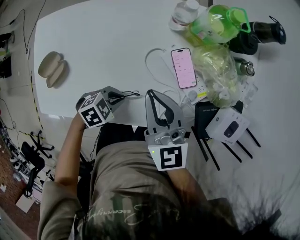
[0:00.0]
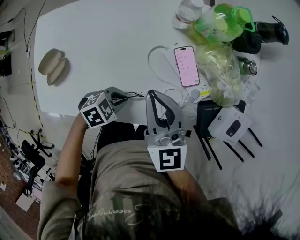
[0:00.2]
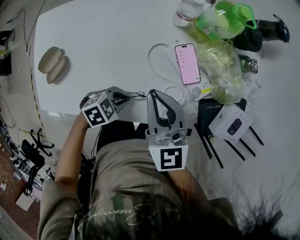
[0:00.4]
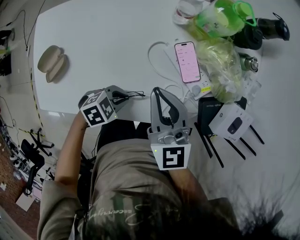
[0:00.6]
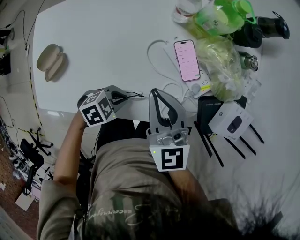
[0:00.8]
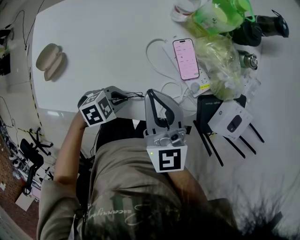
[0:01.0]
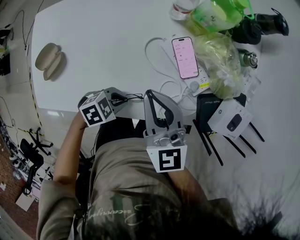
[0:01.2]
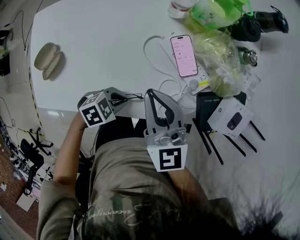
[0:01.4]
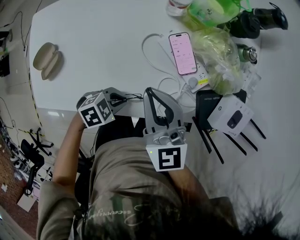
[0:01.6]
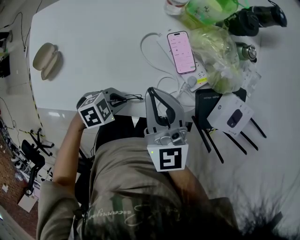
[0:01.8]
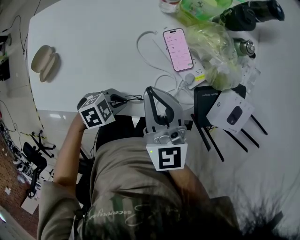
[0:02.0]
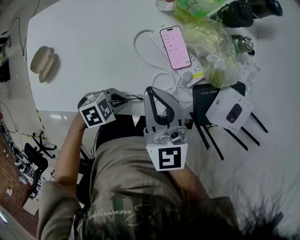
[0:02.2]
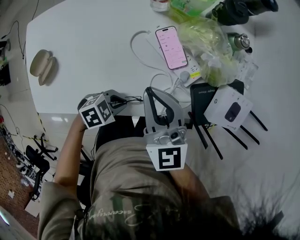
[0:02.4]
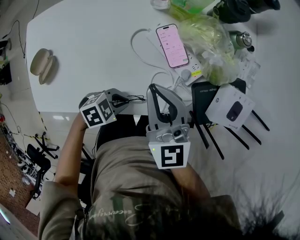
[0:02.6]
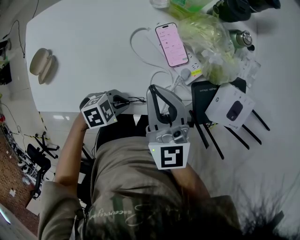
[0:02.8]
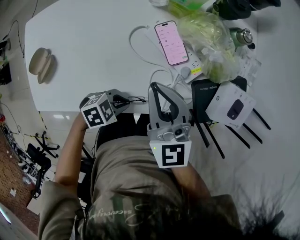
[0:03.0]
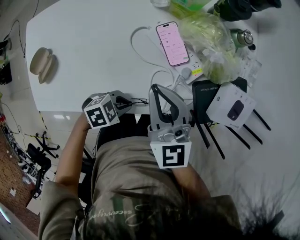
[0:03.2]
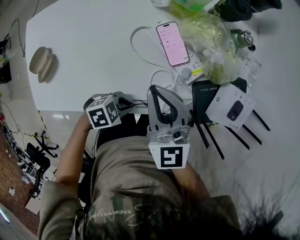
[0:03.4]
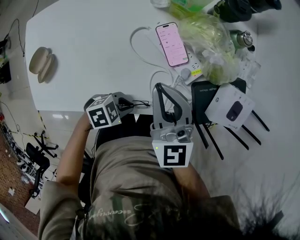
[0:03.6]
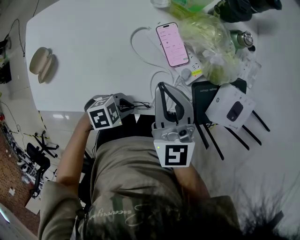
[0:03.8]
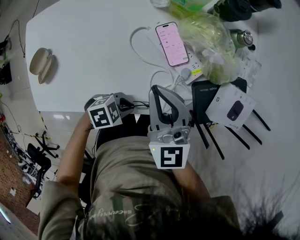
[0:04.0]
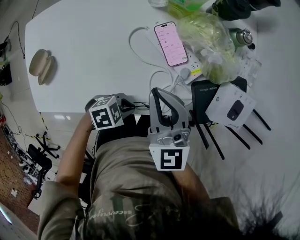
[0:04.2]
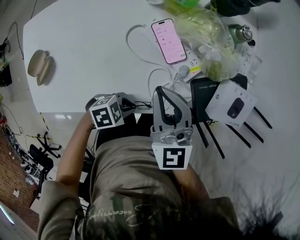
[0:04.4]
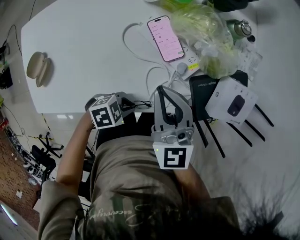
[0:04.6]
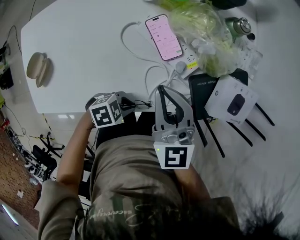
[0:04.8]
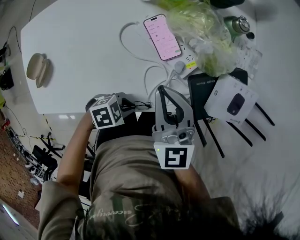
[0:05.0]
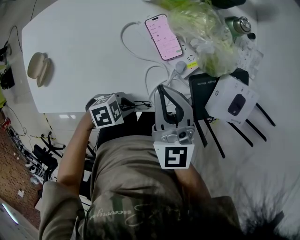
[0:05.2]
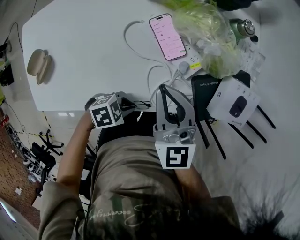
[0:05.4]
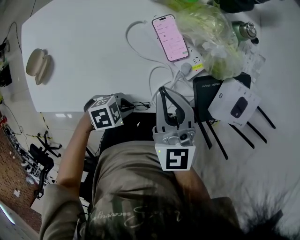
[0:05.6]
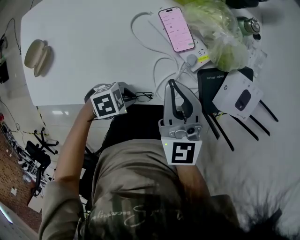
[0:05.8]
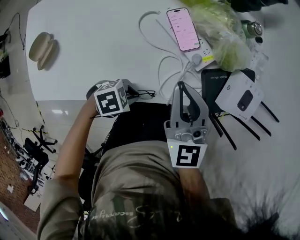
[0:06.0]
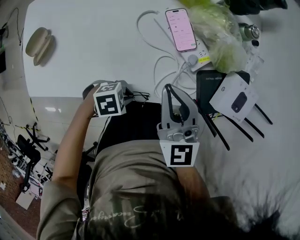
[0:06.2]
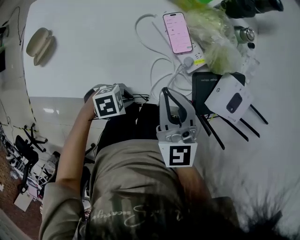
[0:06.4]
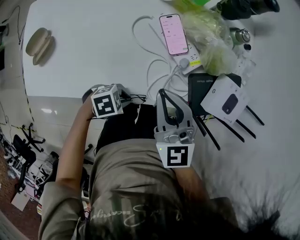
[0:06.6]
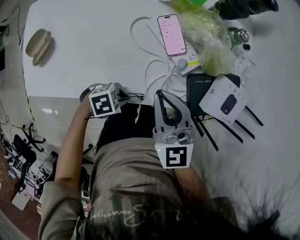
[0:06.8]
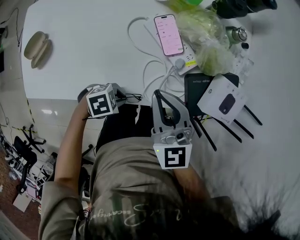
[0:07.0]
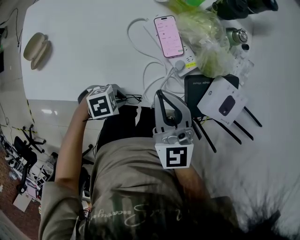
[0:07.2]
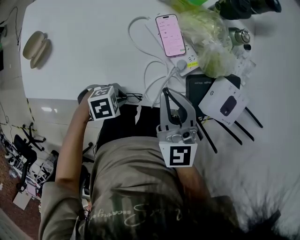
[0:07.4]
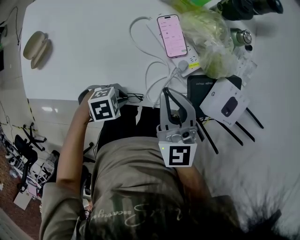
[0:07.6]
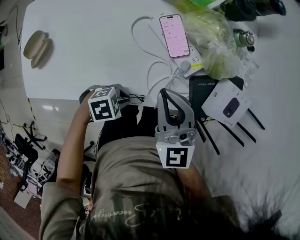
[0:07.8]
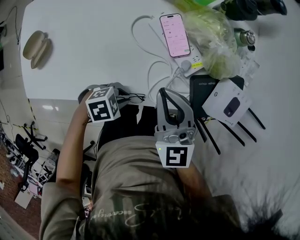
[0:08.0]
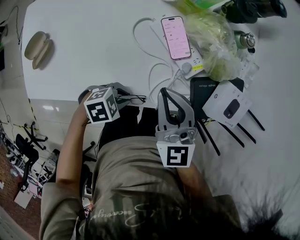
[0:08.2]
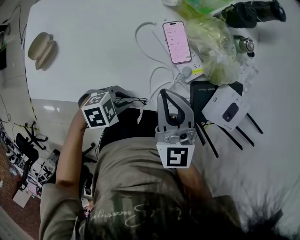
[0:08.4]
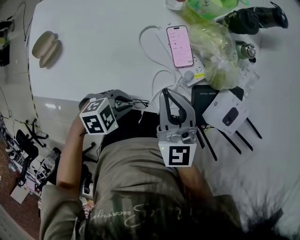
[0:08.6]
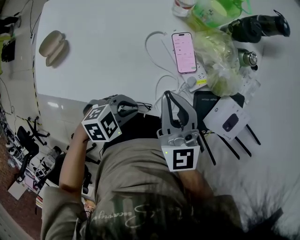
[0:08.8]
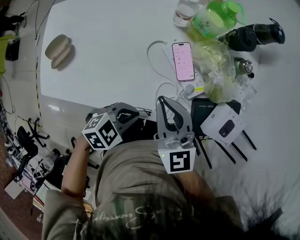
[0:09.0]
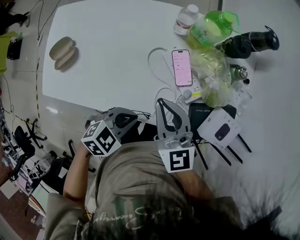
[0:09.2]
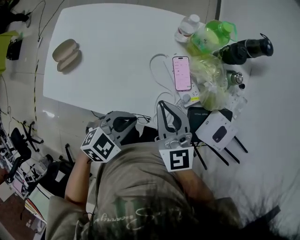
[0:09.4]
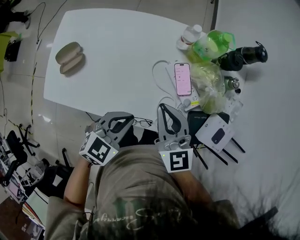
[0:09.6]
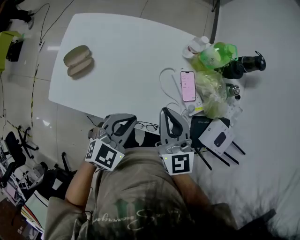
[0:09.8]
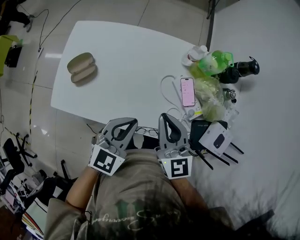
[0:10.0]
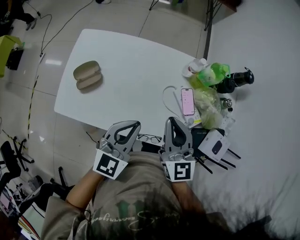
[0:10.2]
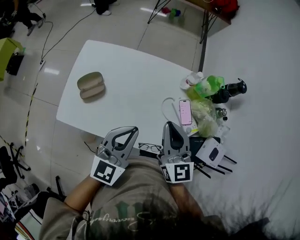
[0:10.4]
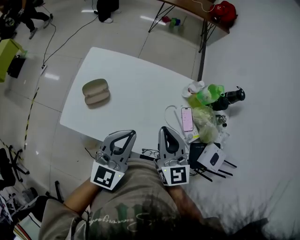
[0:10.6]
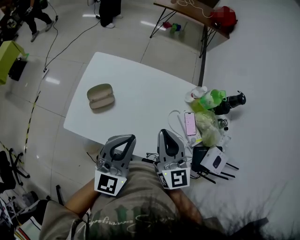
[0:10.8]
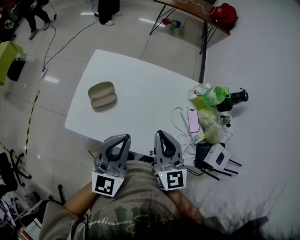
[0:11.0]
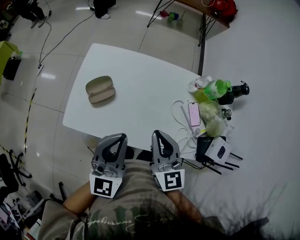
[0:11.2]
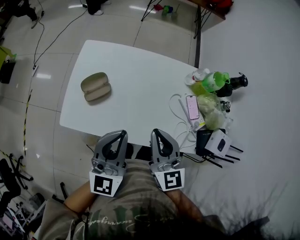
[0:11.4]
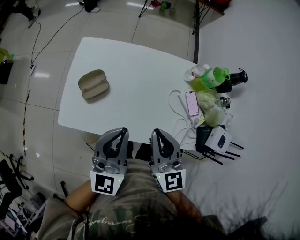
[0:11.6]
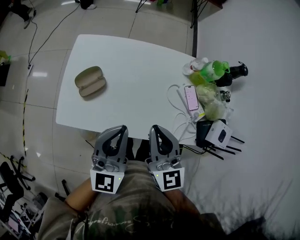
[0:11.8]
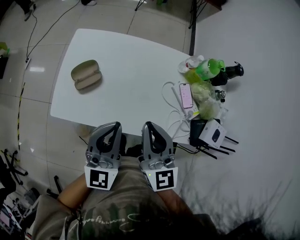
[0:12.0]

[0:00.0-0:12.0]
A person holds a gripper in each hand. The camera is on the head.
0:00.0 to 0:01.6: The left gripper shifts by roughly 5 cm.
0:01.6 to 0:03.0: The right gripper moves about 5 cm; the left gripper shifts by some 5 cm.
0:03.0 to 0:06.0: There are only small adjustments of the grippers.
0:06.0 to 0:07.6: The grippers make only small movements.
0:07.6 to 0:09.0: The left gripper moves upward, about 10 cm, and turns by approximately 30 degrees. The right gripper moves about 5 cm.
0:09.0 to 0:10.4: The right gripper goes roughly 10 cm upward, while the left gripper shifts about 25 cm upward, and tips its fingers upward by some 40 degrees.
0:10.4 to 0:12.0: The left gripper heads to the left, covering some 10 cm, while the right gripper moves to the left and backward, some 10 cm.

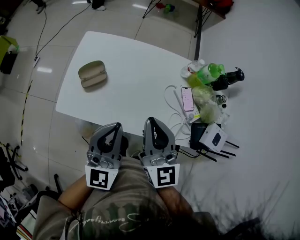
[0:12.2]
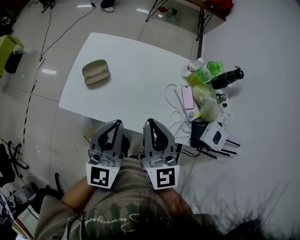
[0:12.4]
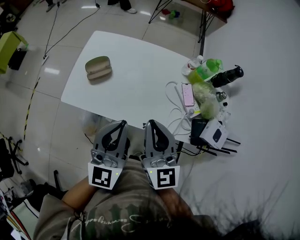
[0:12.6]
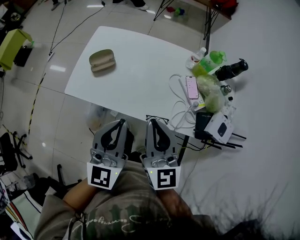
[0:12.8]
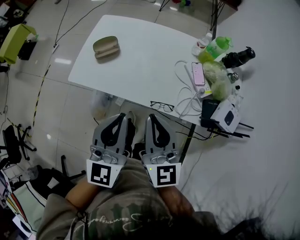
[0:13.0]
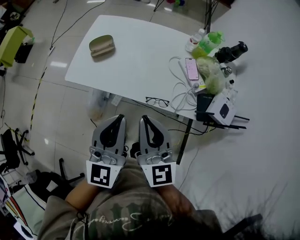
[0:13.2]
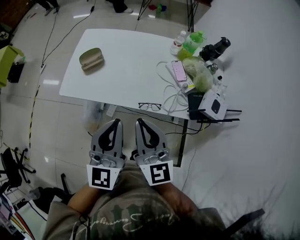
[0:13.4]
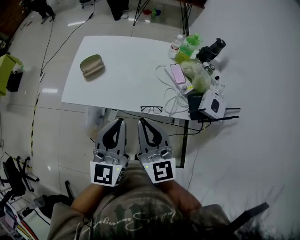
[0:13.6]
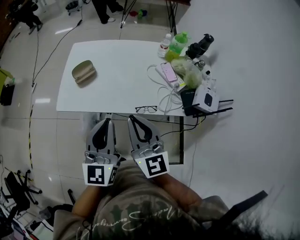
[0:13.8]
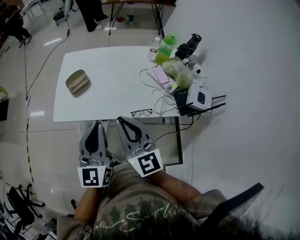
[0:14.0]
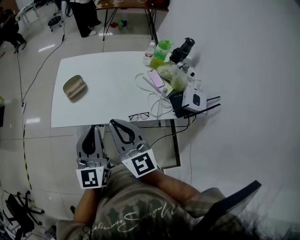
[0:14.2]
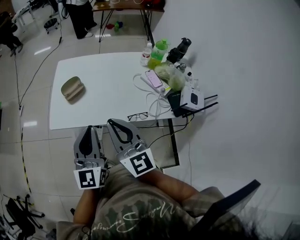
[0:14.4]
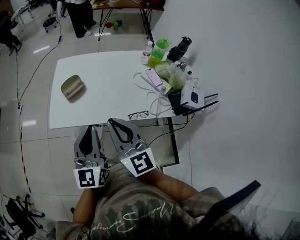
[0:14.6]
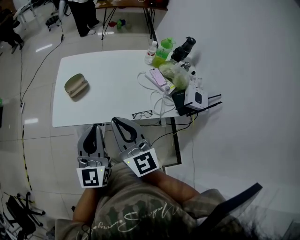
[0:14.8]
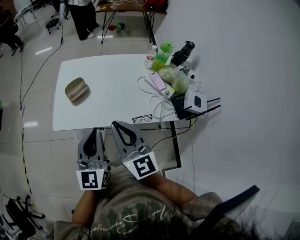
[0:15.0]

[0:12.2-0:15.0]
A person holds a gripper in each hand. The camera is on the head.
0:12.2 to 0:13.6: The grippers both shift backward by roughly 20 cm.
0:13.6 to 0:15.0: Both grippers move to the left, roughly 10 cm.

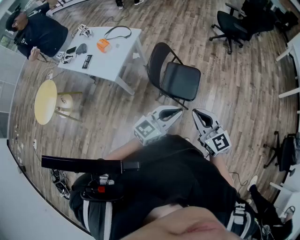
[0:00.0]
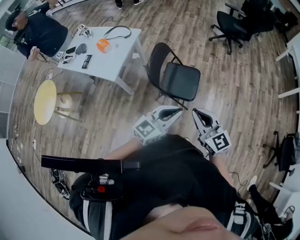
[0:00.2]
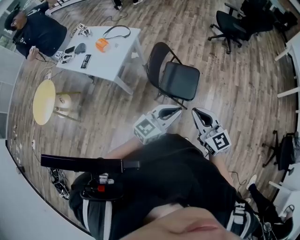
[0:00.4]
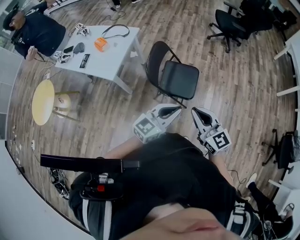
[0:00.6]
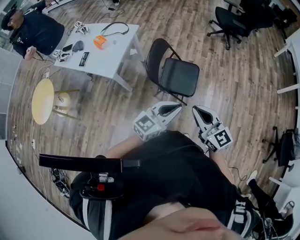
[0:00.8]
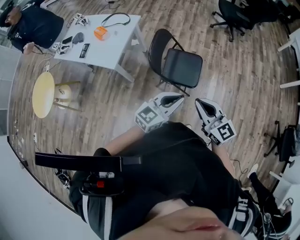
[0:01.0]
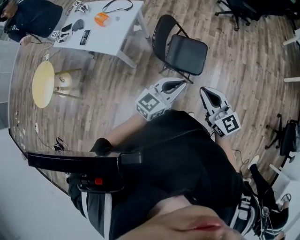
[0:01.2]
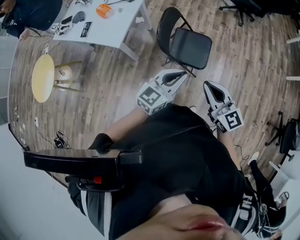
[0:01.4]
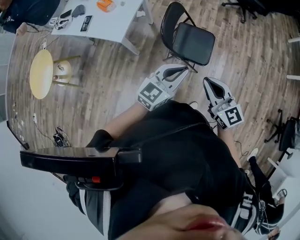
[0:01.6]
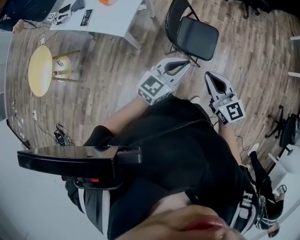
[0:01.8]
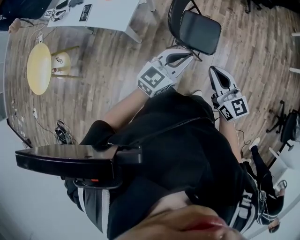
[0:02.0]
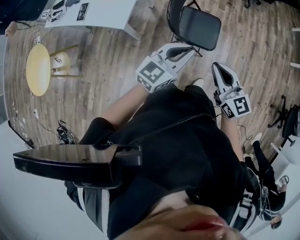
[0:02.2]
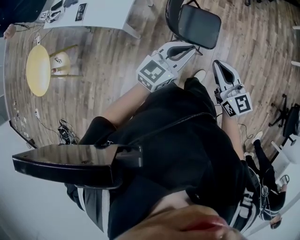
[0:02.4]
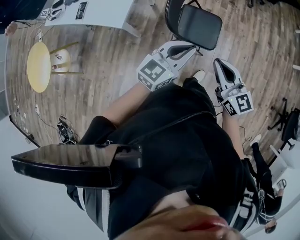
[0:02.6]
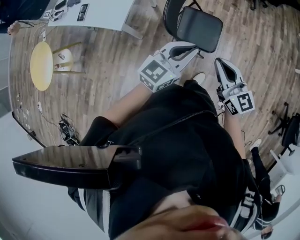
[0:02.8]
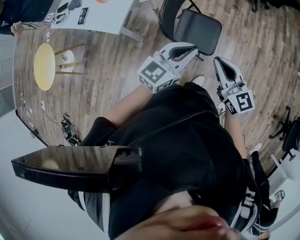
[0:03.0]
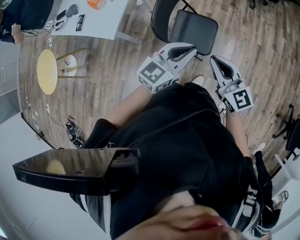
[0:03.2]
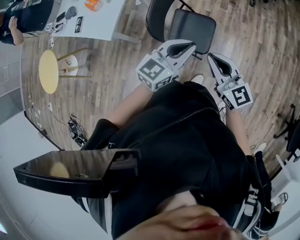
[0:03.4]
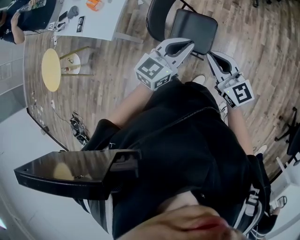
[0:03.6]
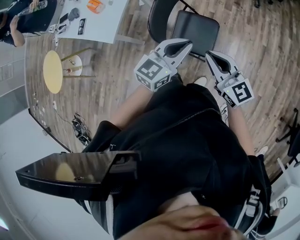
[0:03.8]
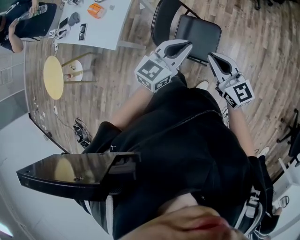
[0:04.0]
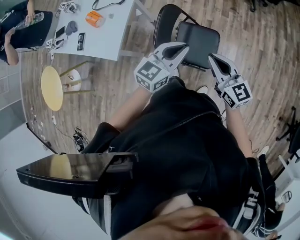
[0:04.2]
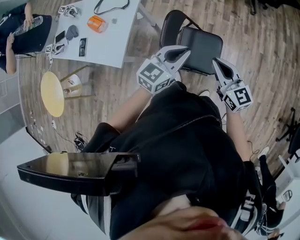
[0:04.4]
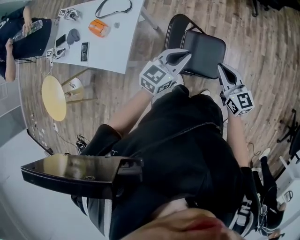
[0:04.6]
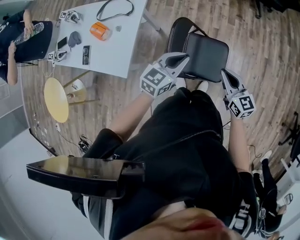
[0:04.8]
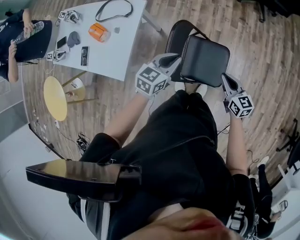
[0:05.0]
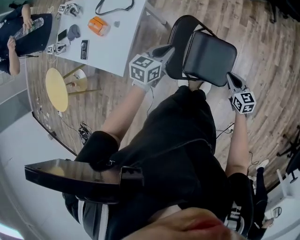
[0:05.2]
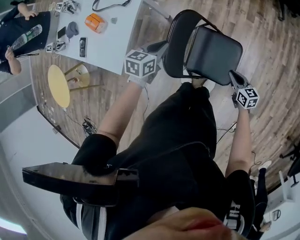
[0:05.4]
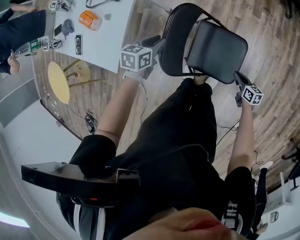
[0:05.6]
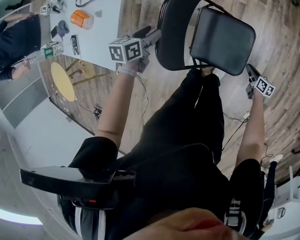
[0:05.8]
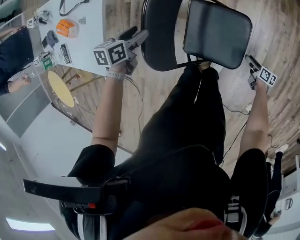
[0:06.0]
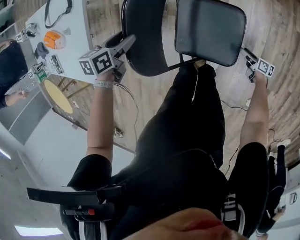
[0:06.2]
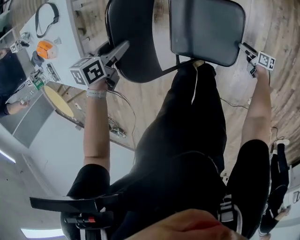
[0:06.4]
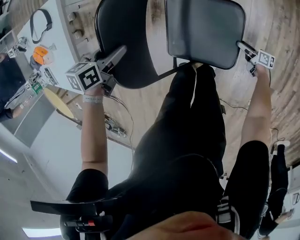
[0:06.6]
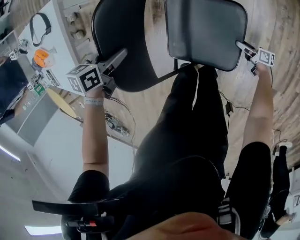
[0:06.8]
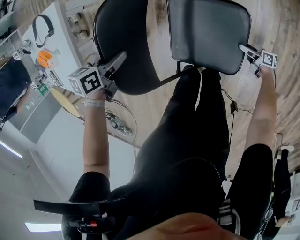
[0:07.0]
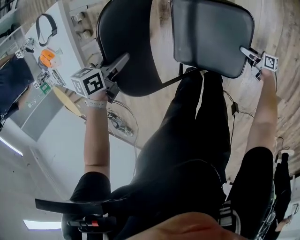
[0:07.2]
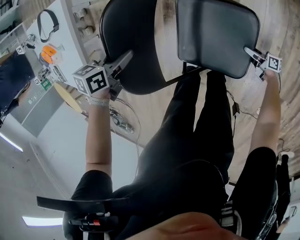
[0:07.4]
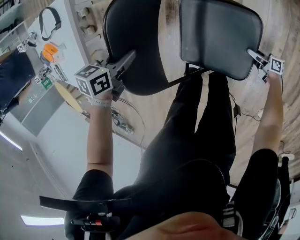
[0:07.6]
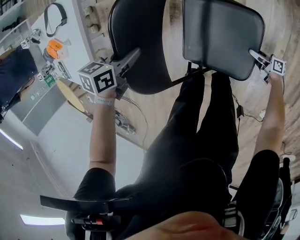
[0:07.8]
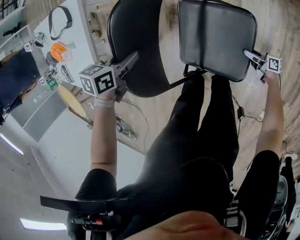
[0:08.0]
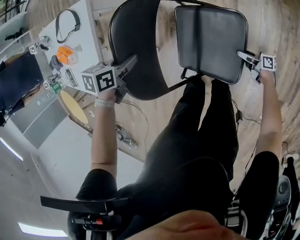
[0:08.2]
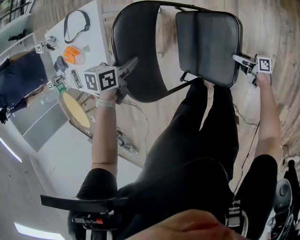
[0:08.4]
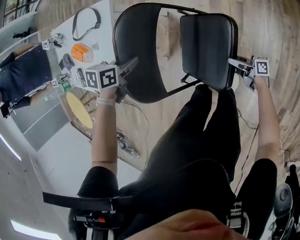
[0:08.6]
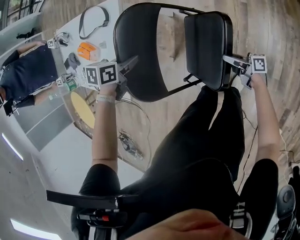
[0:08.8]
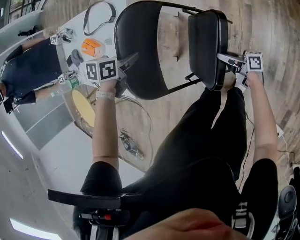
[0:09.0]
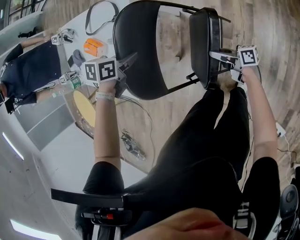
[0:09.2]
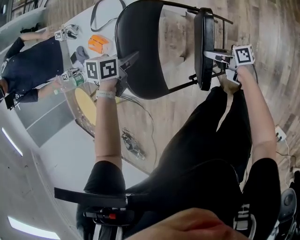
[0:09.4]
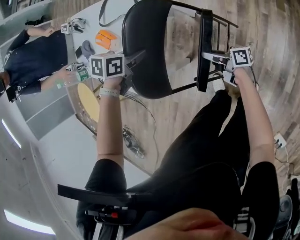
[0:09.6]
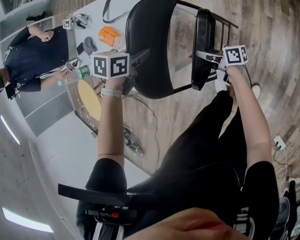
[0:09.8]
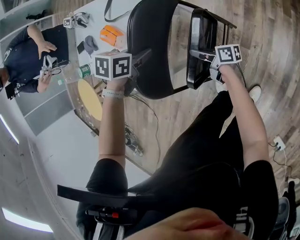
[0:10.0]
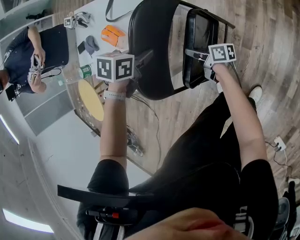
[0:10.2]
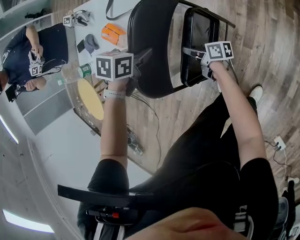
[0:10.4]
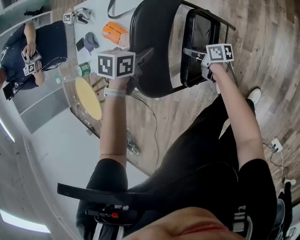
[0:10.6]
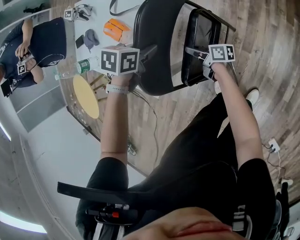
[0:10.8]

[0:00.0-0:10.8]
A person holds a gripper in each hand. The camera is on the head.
0:00.0 to 0:01.6: Both grippers travel together to the left, about 10 cm.
0:01.6 to 0:03.0: The left gripper goes some 10 cm forward; the right gripper goes about 10 cm forward and to the right.
0:03.0 to 0:04.6: Both grippers move forward, roughly 20 cm.
0:04.6 to 0:06.2: The left gripper shifts roughly 40 cm downward, to the left and forward, angles its fingers downward, by approximately 40 degrees, and opens; the right gripper shifts some 60 cm downward, rolls clockwise, seen from behind, by about 60 degrees, and opens its fingers.
0:06.2 to 0:07.8: The left gripper closes. Meanwhile the right gripper moves about 10 cm, and rotates roughly 20 degrees.
0:07.8 to 0:09.2: The right gripper changes place by roughly 40 cm, rotates some 20 degrees, and closes. Meanwhile the left gripper changes place by about 20 cm.
0:09.2 to 0:10.8: The left gripper changes place by about 10 cm; the right gripper changes place by roughly 25 cm.
